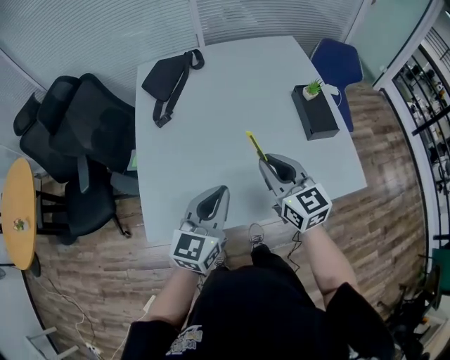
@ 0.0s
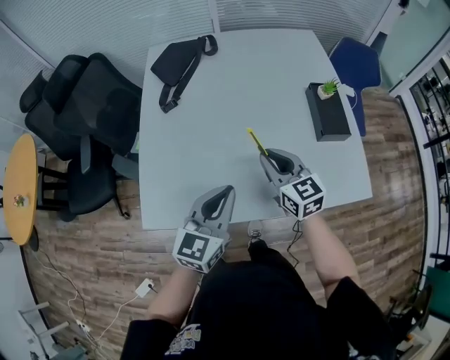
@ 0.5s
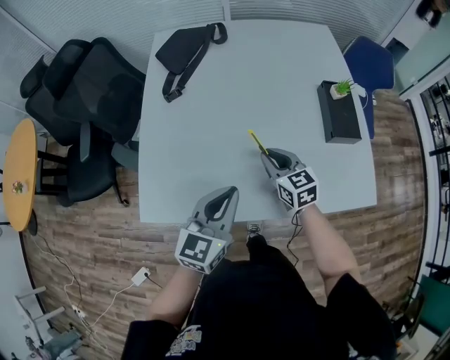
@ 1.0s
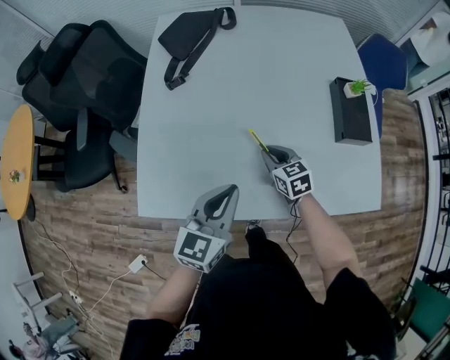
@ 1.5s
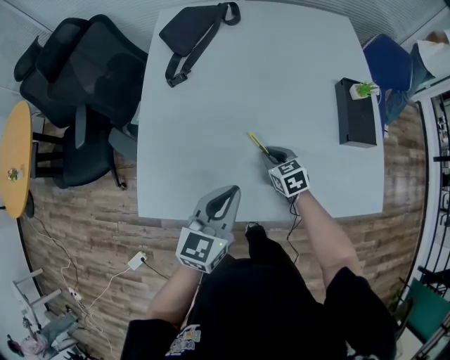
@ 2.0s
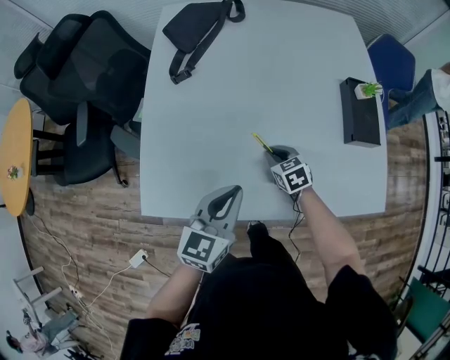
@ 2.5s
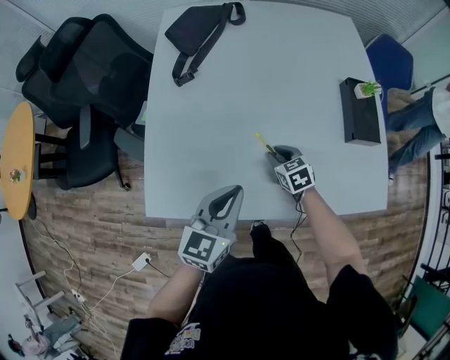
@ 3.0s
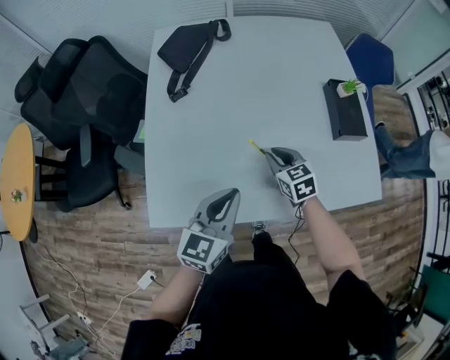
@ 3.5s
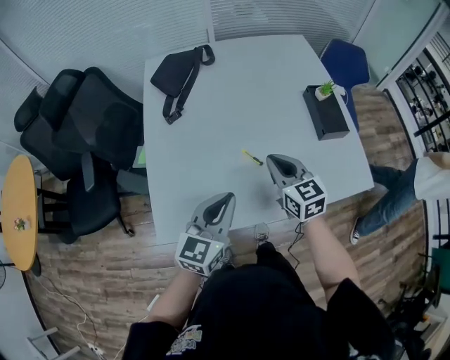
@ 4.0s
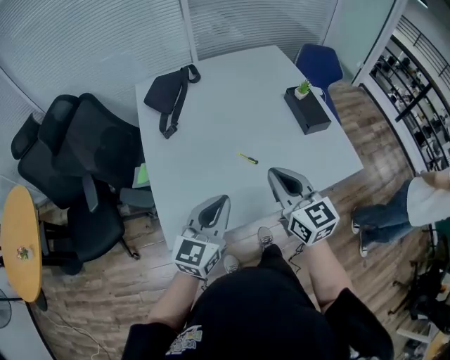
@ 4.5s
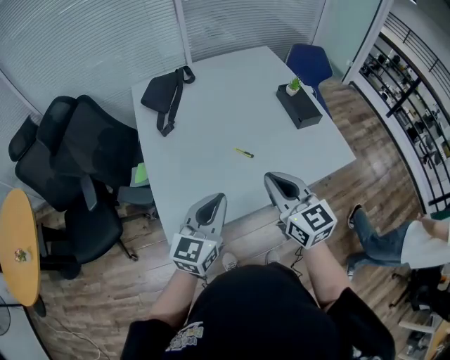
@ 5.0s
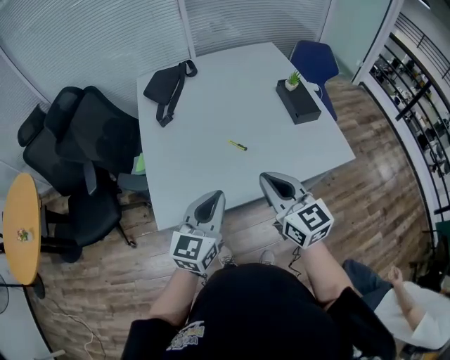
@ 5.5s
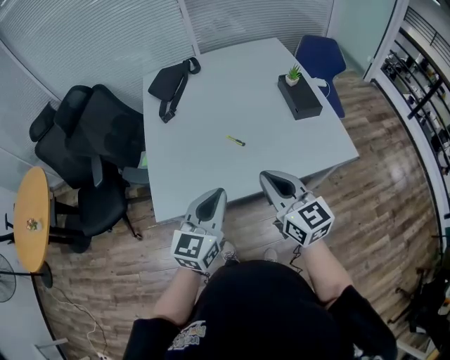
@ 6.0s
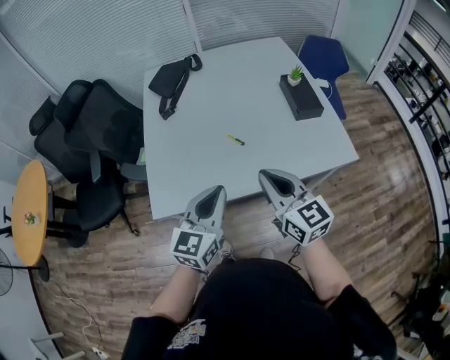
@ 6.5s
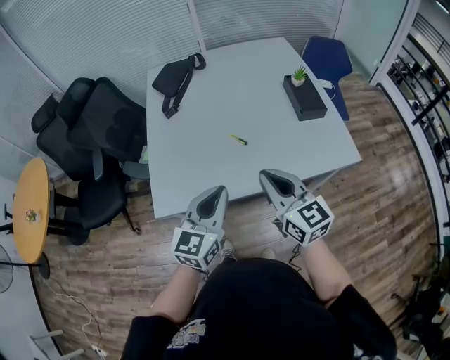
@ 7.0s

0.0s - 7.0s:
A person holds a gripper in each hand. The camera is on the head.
0.0s - 2.0s: The left gripper moves downward, roughly 10 cm; the right gripper goes approximately 25 cm downward, and tilts its fingers some 40 degrees downward.
2.0s - 3.5s: The right gripper shifts about 10 cm upward.
3.5s - 5.0s: The right gripper travels upward and backward by approximately 30 cm, and swivels approximately 30 degrees. The left gripper shifts about 15 cm backward, upward and to the left.
5.0s - 7.0s: The two grippers go about 10 cm to the right.

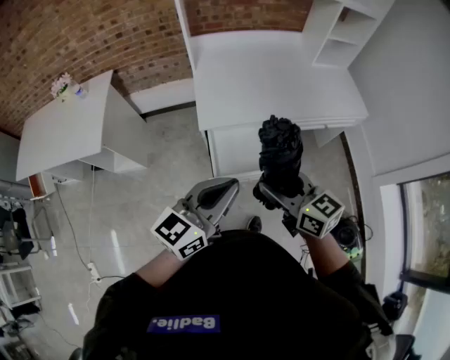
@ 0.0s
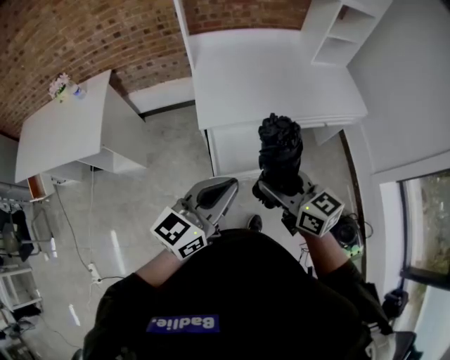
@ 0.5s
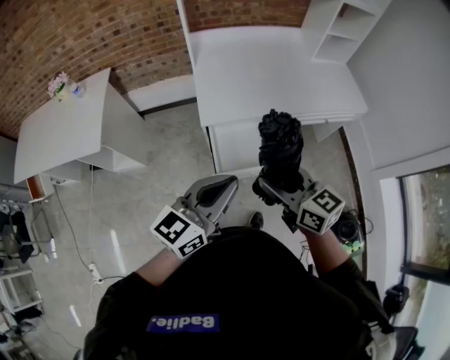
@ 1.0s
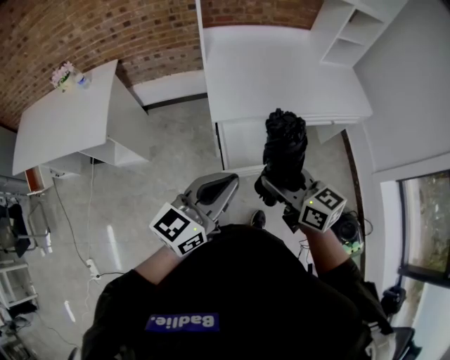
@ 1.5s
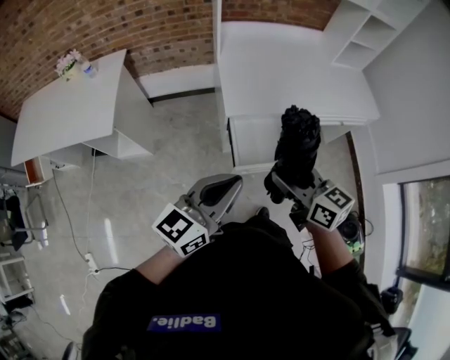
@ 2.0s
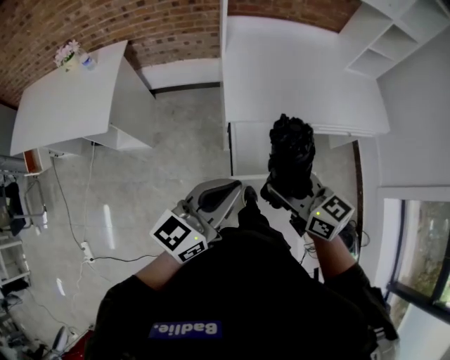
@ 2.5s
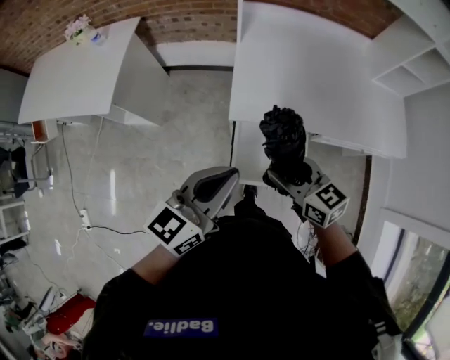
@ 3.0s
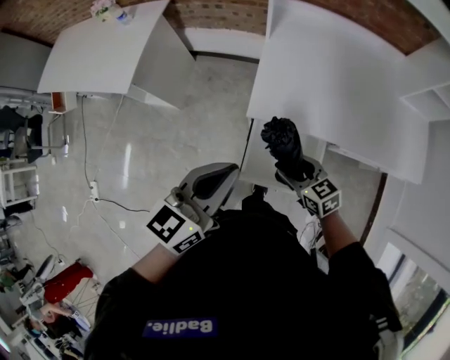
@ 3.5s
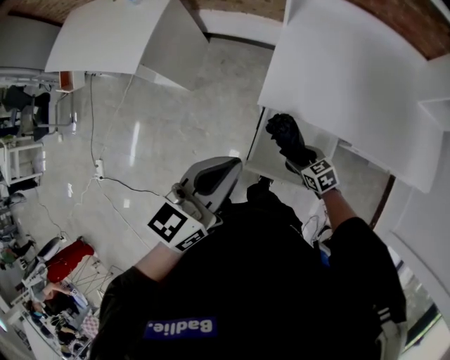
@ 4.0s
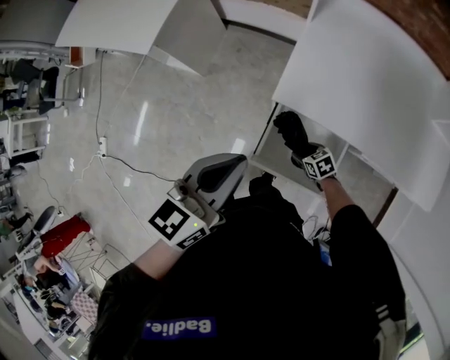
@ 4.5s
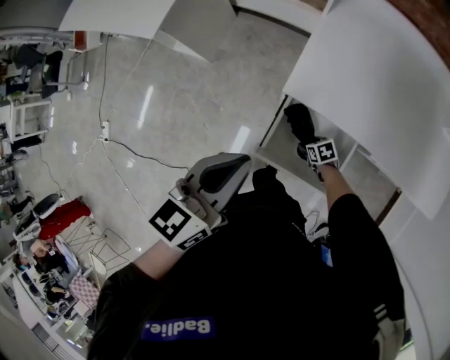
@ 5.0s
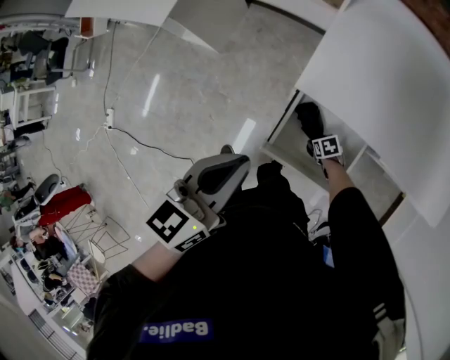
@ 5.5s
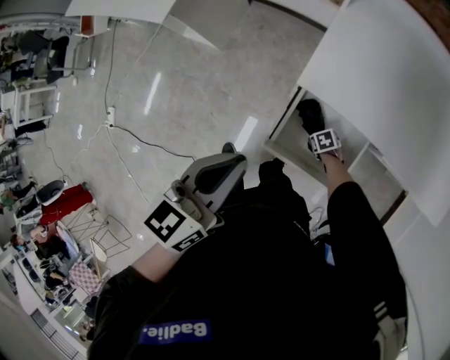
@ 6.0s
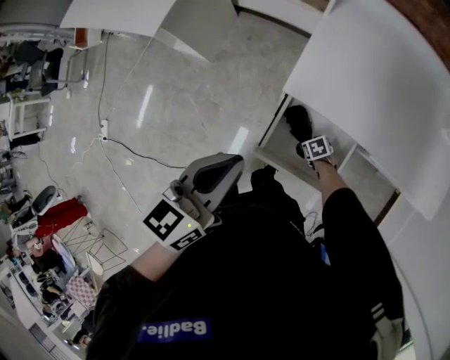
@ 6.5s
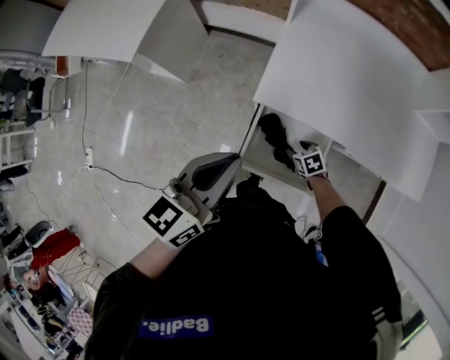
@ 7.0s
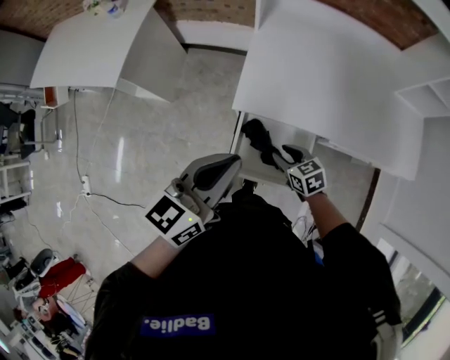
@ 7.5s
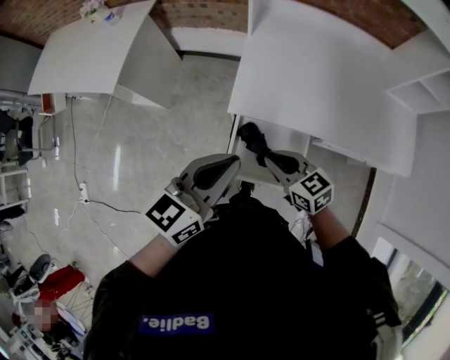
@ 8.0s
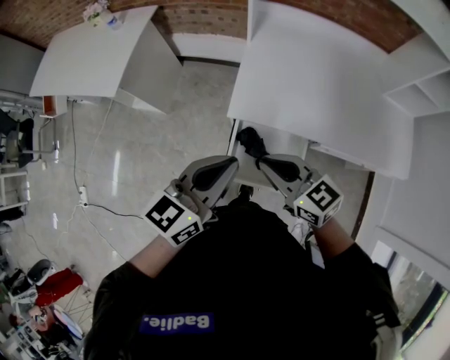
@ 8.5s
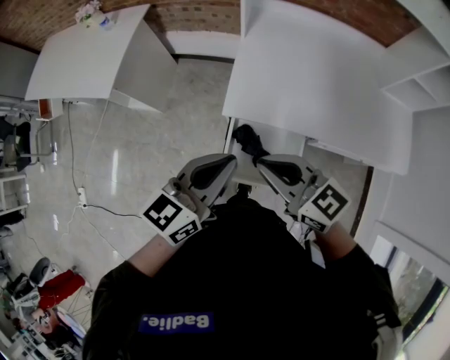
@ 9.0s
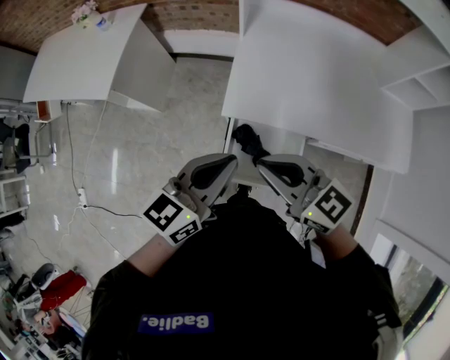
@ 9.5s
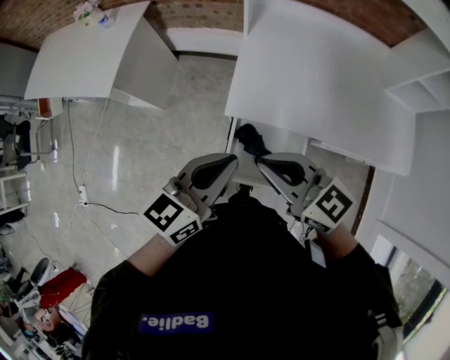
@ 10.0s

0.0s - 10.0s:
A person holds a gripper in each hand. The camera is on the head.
0.0s - 2.0s: Both grippers move to the left, about 10 cm.
2.0s - 4.0s: The right gripper travels downward by some 35 cm, and angles its fingers downward, by some 30 degrees, while the left gripper ends up about 15 cm from where it was, and turns by approximately 30 degrees.
4.0s - 6.0s: The right gripper goes about 20 cm downward, and tilts its fingers approximately 30 degrees downward. Meanwhile the left gripper moves some 5 cm.
6.0s - 8.0s: The left gripper ends up approximately 10 cm from where it was, and swivels some 20 degrees. The right gripper is displaced upward by approximately 40 cm, tilts its fingers approximately 50 degrees upward, and closes its fingers.
8.0s - 10.0s: The right gripper goes approximately 15 cm upward, and turns by approximately 20 degrees.

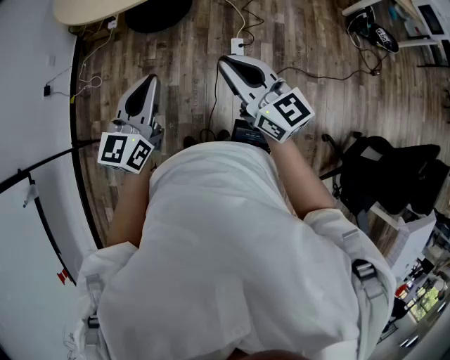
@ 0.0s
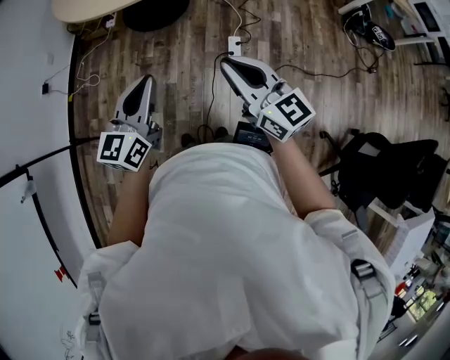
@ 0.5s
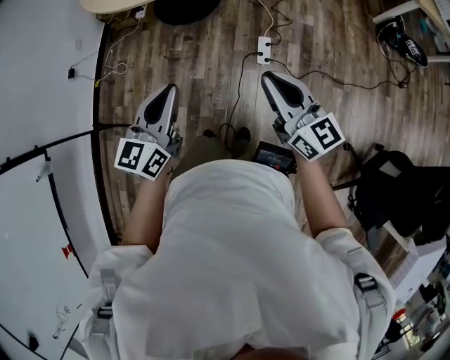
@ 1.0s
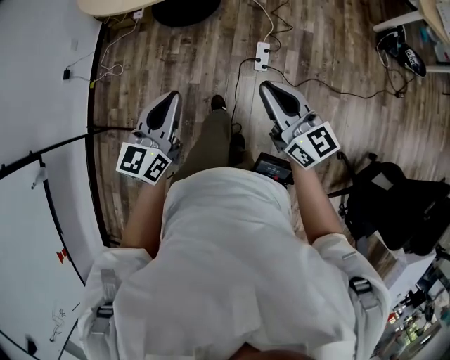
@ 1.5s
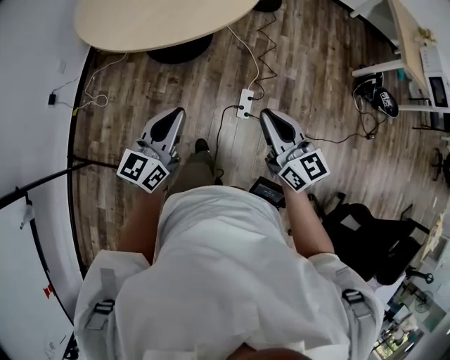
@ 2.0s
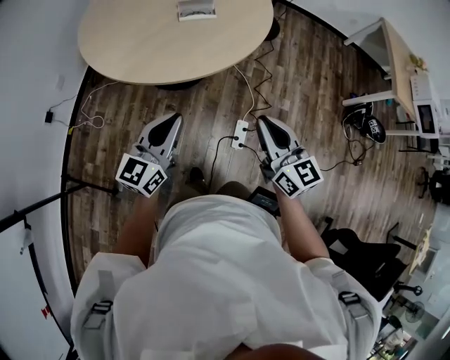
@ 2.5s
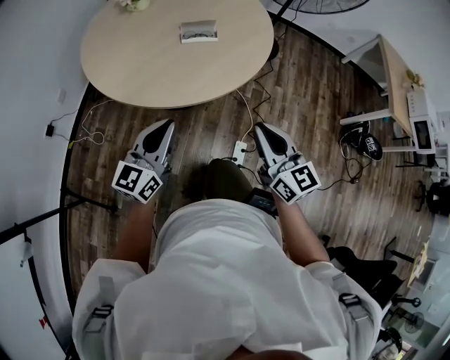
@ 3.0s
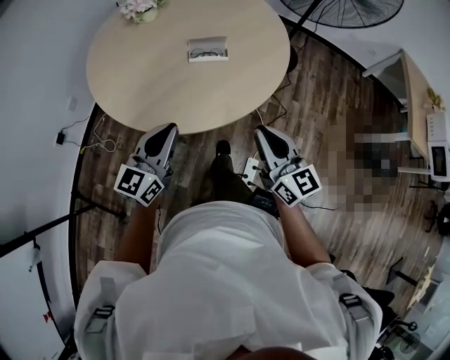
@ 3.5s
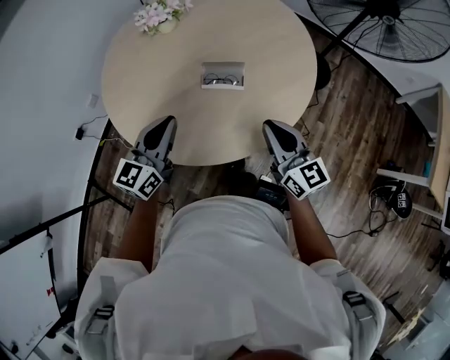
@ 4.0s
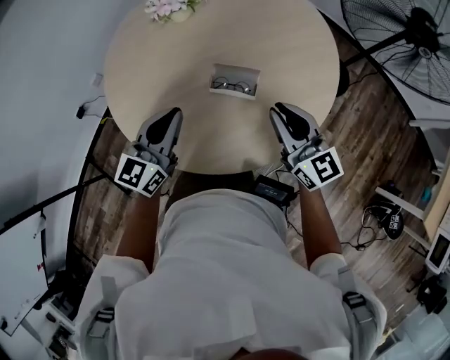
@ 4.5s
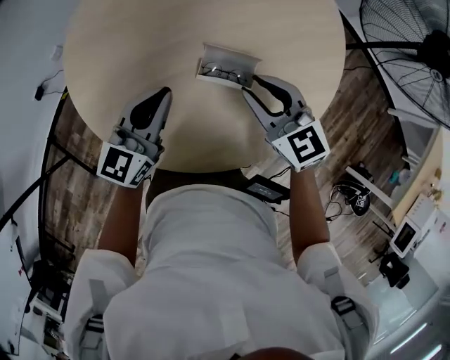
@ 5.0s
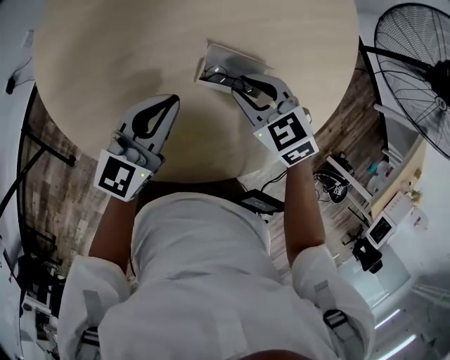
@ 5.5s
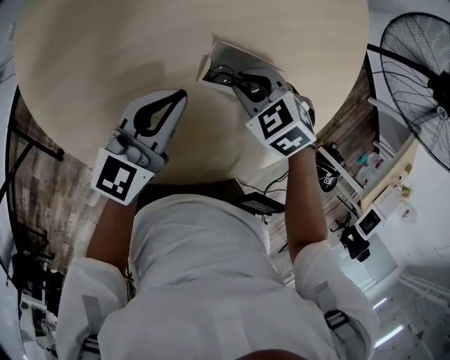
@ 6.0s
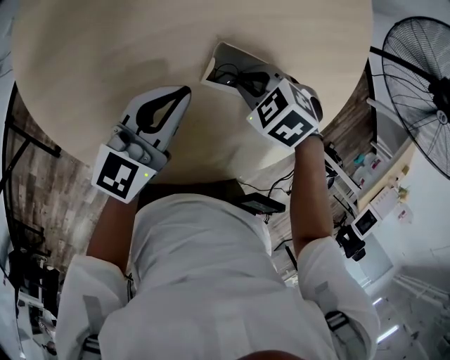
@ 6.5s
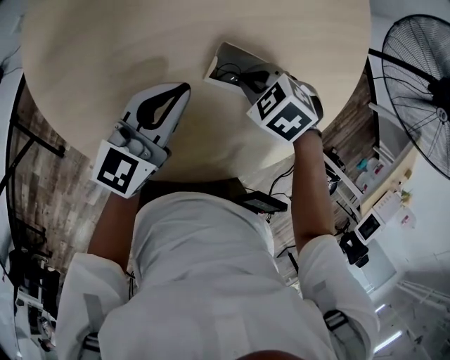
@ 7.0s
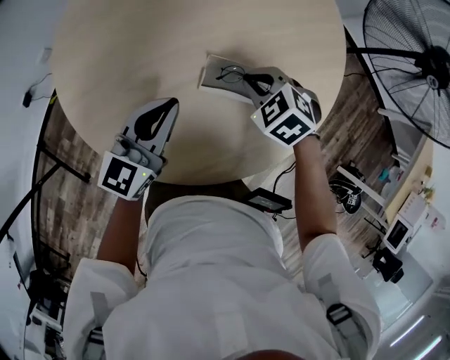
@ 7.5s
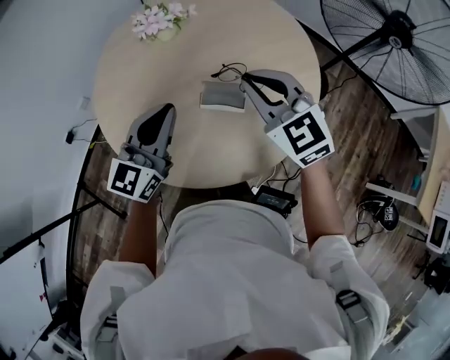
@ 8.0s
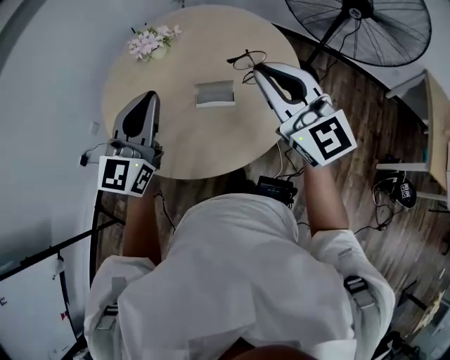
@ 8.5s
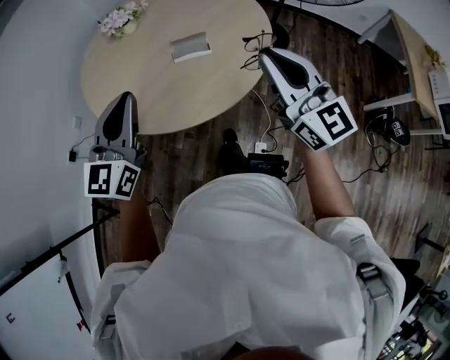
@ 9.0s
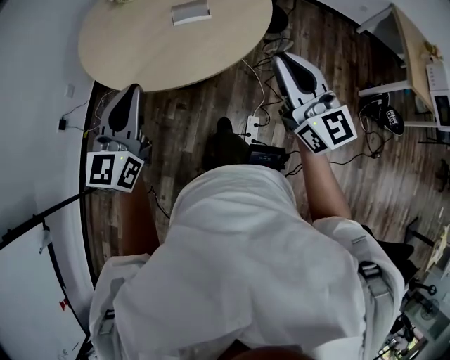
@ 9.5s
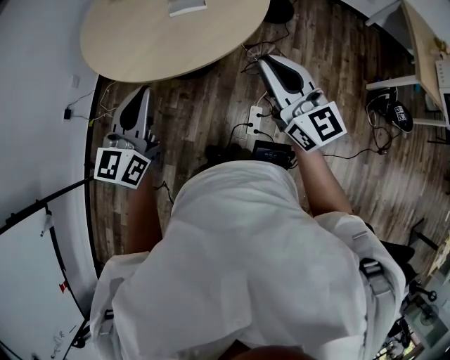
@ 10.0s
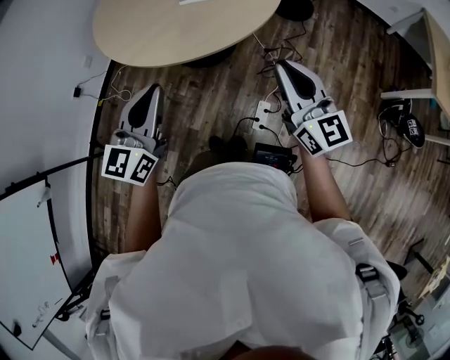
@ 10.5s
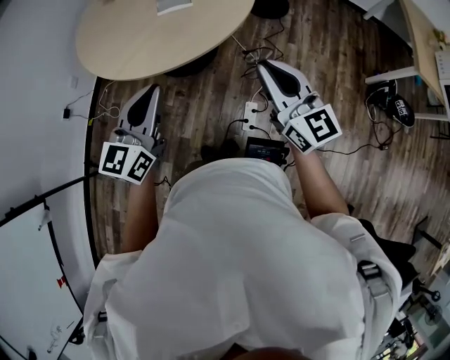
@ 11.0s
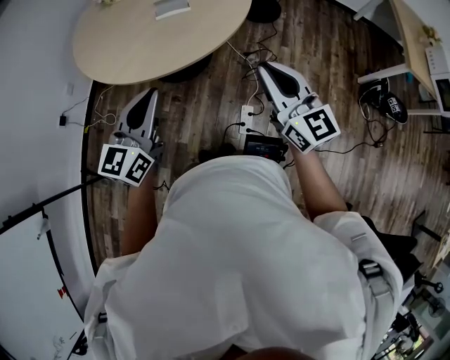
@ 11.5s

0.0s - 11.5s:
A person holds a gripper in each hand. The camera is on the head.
0.0s - 2.0s: The two grippers go roughly 15 cm forward.
2.0s - 4.0s: The two grippers travel together, forward, roughly 50 cm. The left gripper changes its angle by approximately 20 degrees.
4.0s - 6.0s: The two grippers go about 30 cm downward and forward. The right gripper tips its fingers downward by about 60 degrees.
6.0s - 7.5s: Both grippers travel together upward, approximately 10 cm.
7.5s - 9.5s: The grippers both shift backward and upward by about 50 cm. The right gripper angles its fingers upward, by some 70 degrees.
9.5s - 11.5s: The left gripper moves to the right and backward, approximately 15 cm. The right gripper moves backward and to the right, roughly 10 cm.
